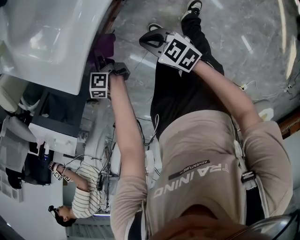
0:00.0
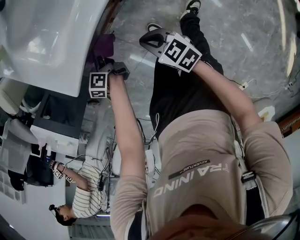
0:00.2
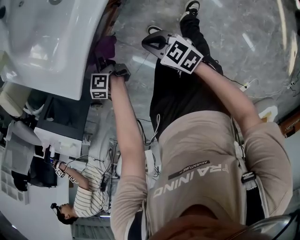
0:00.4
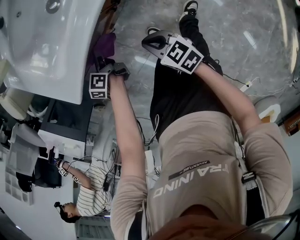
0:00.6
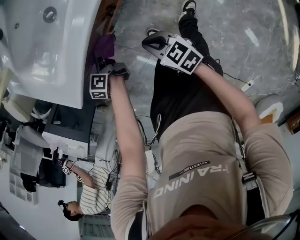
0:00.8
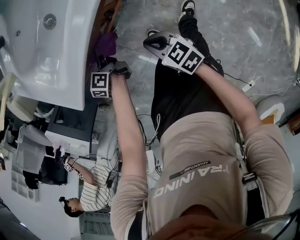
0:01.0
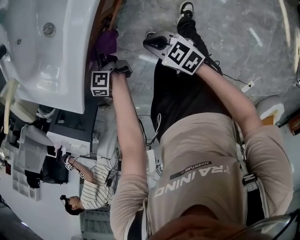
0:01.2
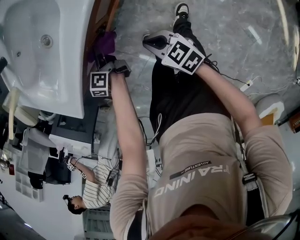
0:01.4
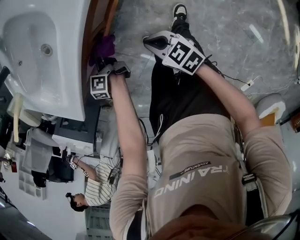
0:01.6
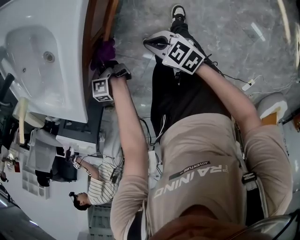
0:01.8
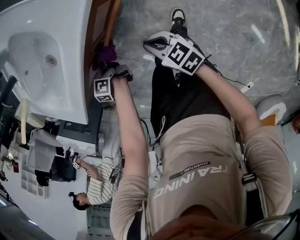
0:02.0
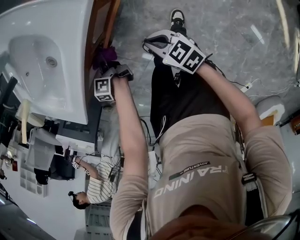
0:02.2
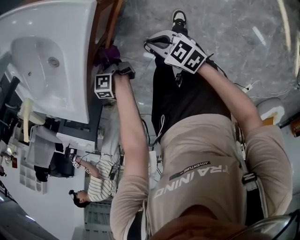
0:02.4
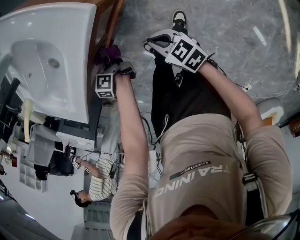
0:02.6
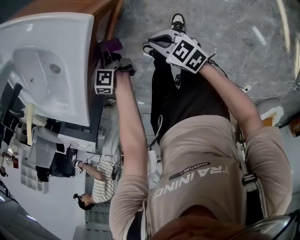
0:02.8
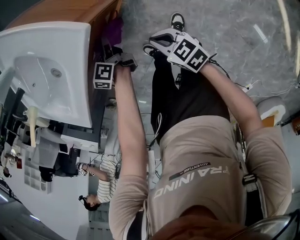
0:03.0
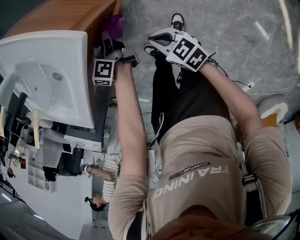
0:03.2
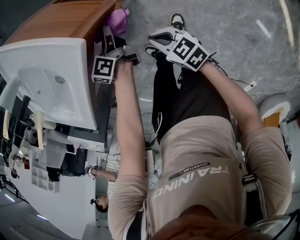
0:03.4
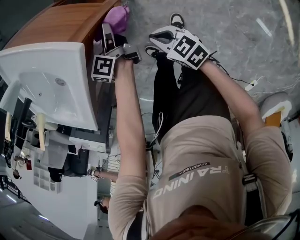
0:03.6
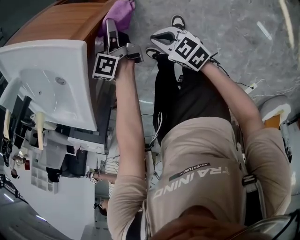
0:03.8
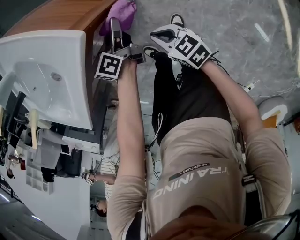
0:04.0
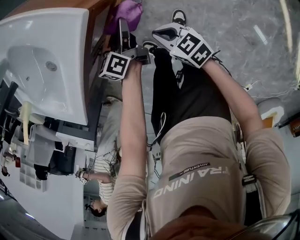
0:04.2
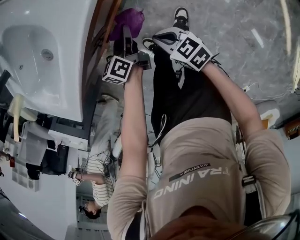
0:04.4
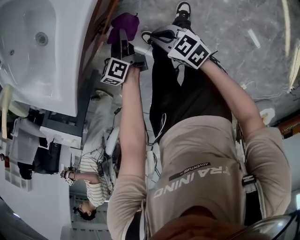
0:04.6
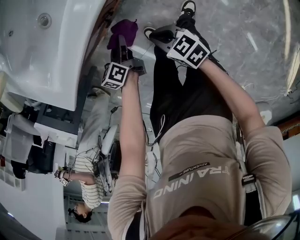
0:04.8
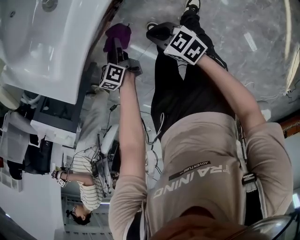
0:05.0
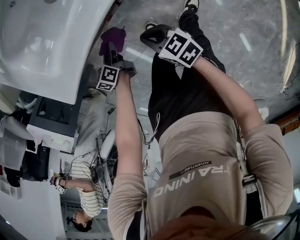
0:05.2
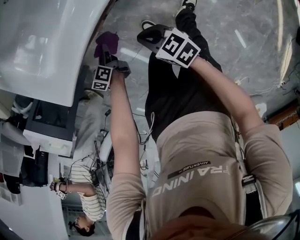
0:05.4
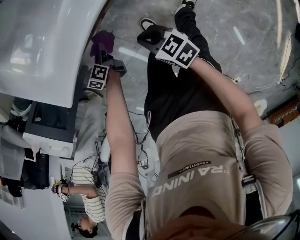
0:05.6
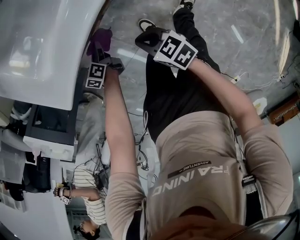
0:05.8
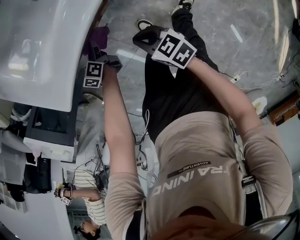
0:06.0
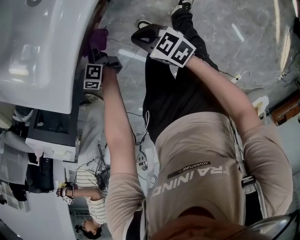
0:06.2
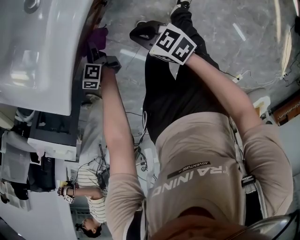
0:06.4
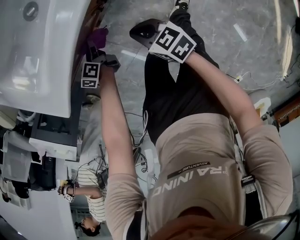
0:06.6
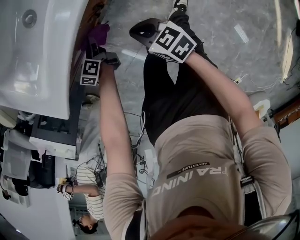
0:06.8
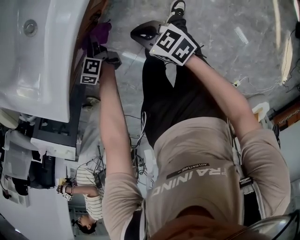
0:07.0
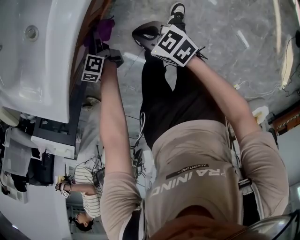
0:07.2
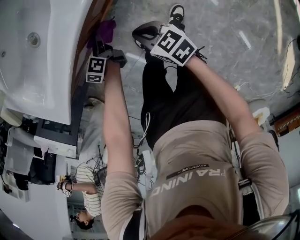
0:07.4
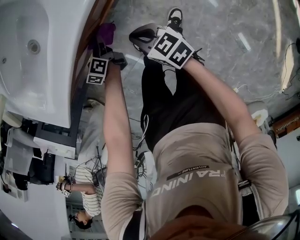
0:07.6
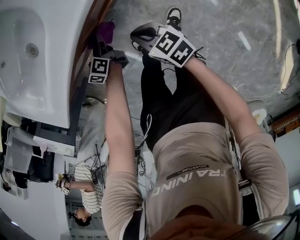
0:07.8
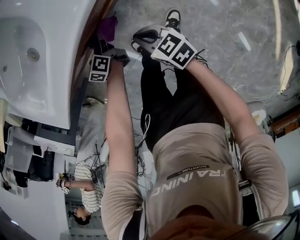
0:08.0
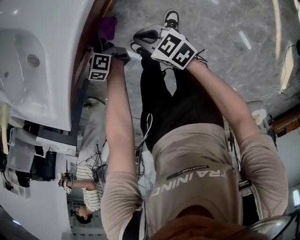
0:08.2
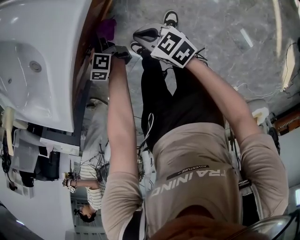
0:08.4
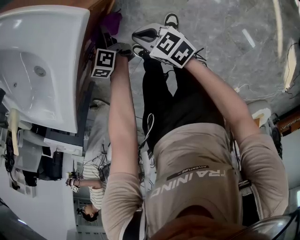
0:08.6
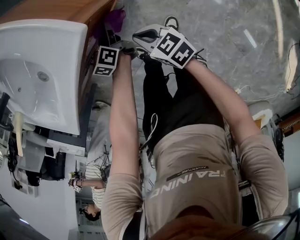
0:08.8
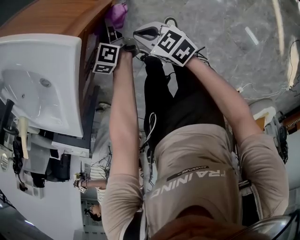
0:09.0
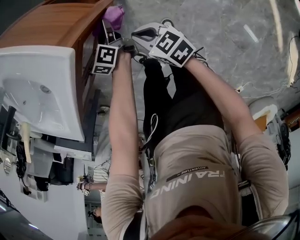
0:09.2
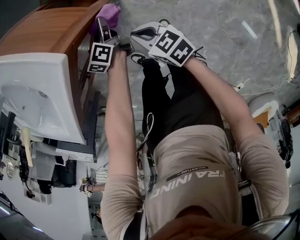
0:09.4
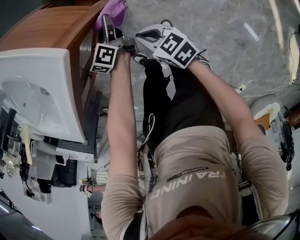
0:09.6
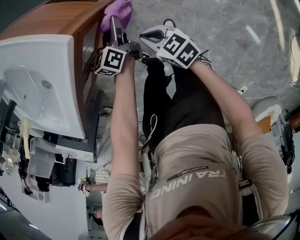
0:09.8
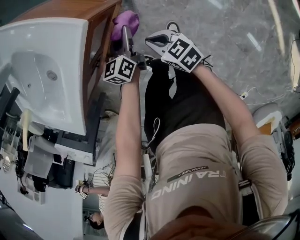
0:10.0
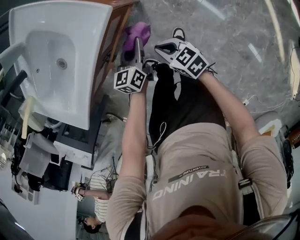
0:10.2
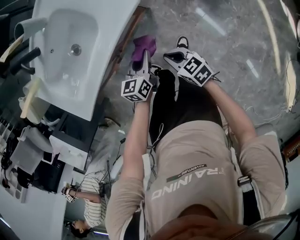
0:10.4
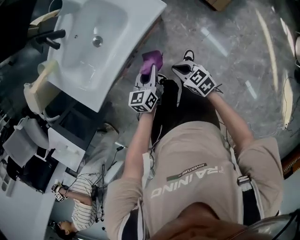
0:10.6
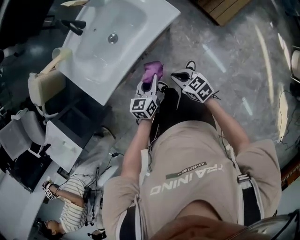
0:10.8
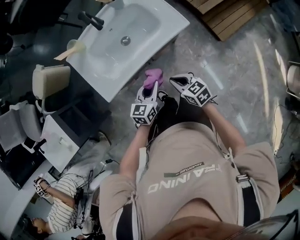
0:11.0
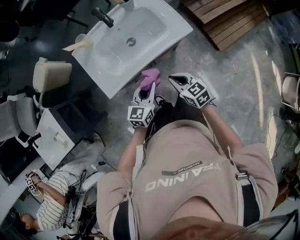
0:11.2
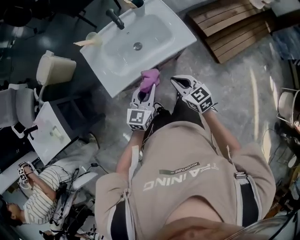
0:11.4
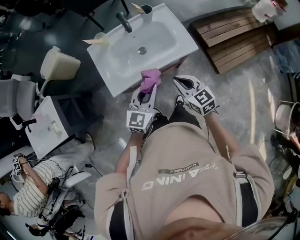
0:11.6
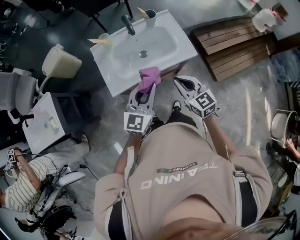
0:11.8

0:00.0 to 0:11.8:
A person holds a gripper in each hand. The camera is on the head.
0:00.0 to 0:01.4: Both grippers travel together to the right, some 20 cm.
0:01.4 to 0:03.0: Both grippers travel together to the right, about 20 cm.
0:03.0 to 0:04.4: The right gripper shifts roughly 10 cm to the left. Meanwhile the left gripper shifts about 10 cm backward, and moves approximately 15 cm to the right and comes back.
0:04.4 to 0:06.0: The grippers both shift to the left by some 30 cm. The left gripper turns by about 20 degrees.
0:06.0 to 0:07.4: The grippers both shift to the right by some 20 cm.
0:07.4 to 0:08.8: The left gripper is displaced to the right by some 25 cm; the right gripper travels to the right by some 15 cm.
0:08.8 to 0:10.4: The right gripper goes approximately 15 cm upward and backward, while the left gripper goes about 20 cm upward and backward, and turns by some 30 degrees.
0:10.4 to 0:11.8: The left gripper goes roughly 40 cm upward and to the left, and turns by roughly 40 degrees. Meanwhile the right gripper goes some 35 cm upward, and turns by about 40 degrees.

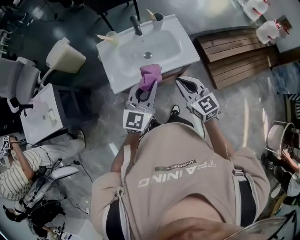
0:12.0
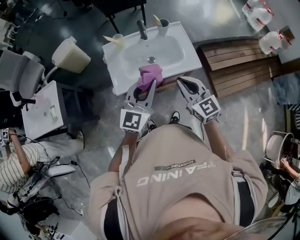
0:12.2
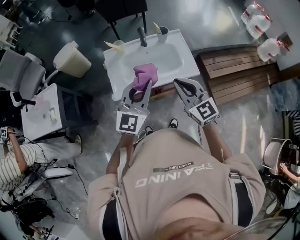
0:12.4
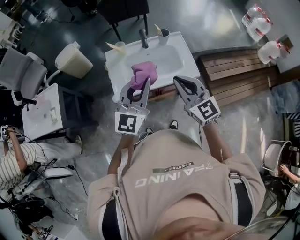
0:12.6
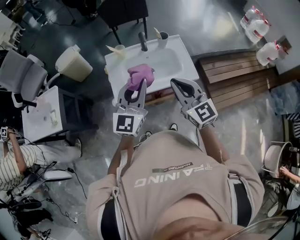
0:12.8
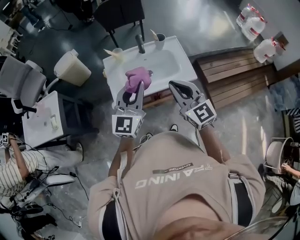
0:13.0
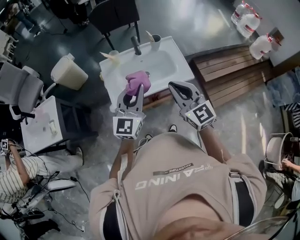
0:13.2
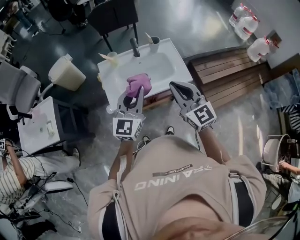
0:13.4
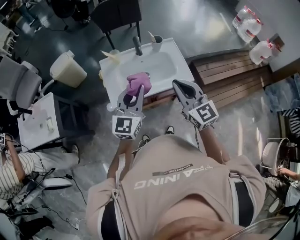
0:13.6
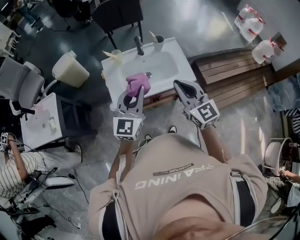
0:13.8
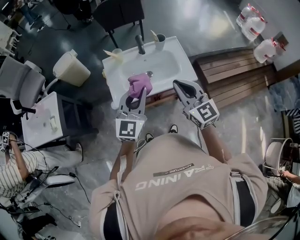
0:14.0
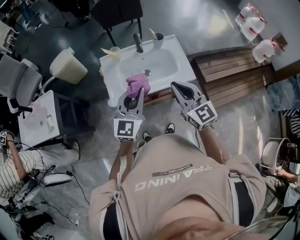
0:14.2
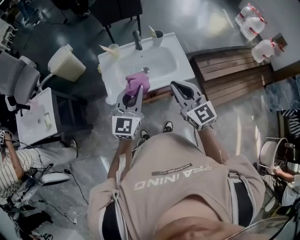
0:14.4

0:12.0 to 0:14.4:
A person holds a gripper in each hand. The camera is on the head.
0:12.0 to 0:13.2: The right gripper moves upward, roughly 10 cm. The left gripper goes approximately 5 cm upward.
0:13.2 to 0:14.4: The grippers make only small movements.

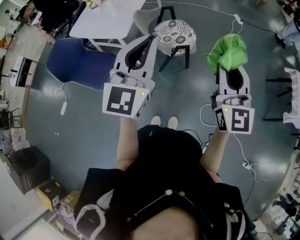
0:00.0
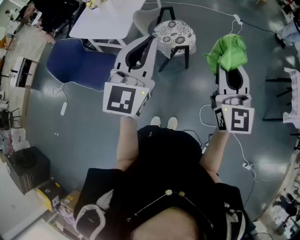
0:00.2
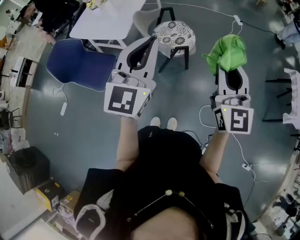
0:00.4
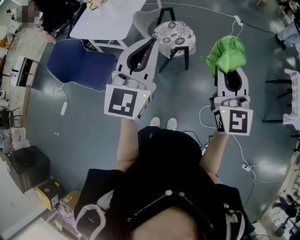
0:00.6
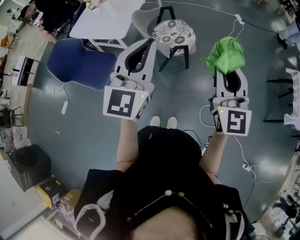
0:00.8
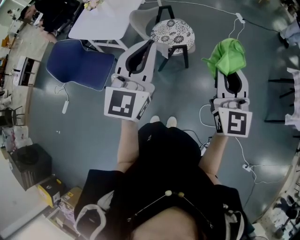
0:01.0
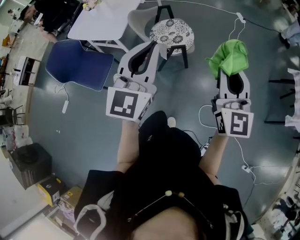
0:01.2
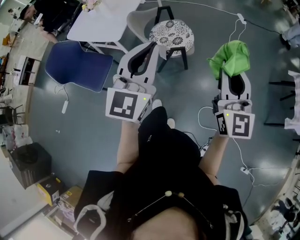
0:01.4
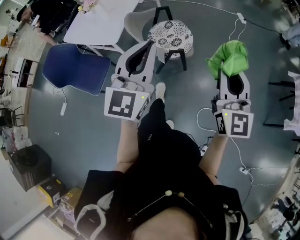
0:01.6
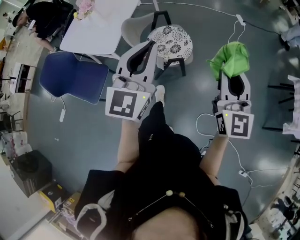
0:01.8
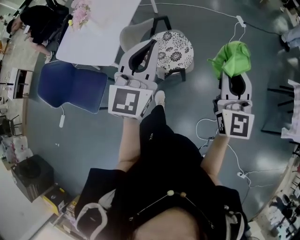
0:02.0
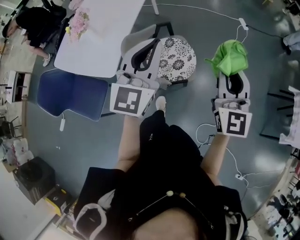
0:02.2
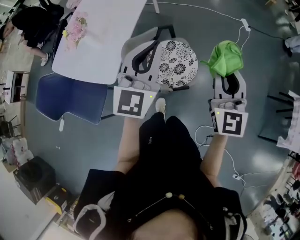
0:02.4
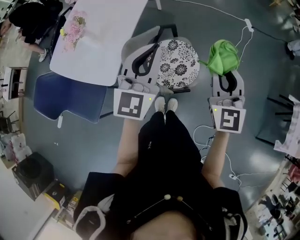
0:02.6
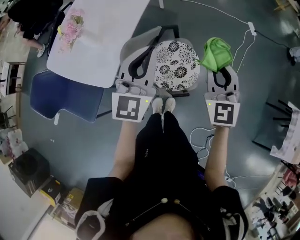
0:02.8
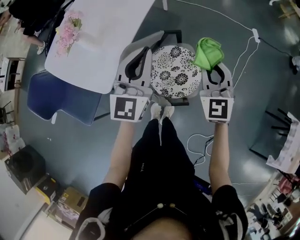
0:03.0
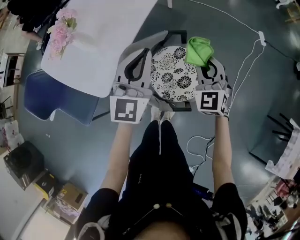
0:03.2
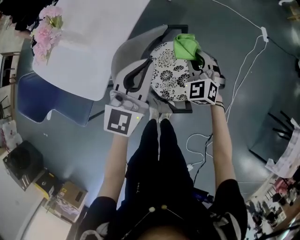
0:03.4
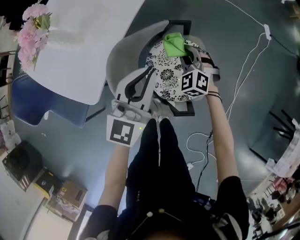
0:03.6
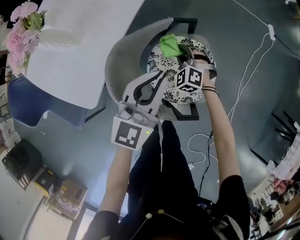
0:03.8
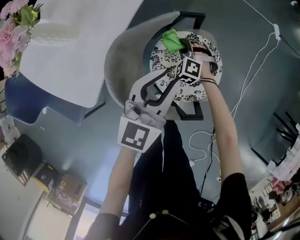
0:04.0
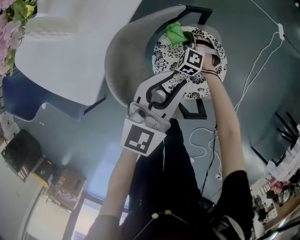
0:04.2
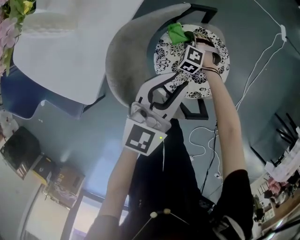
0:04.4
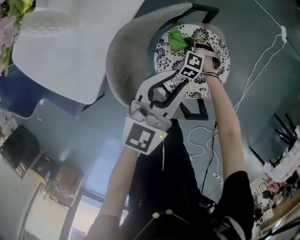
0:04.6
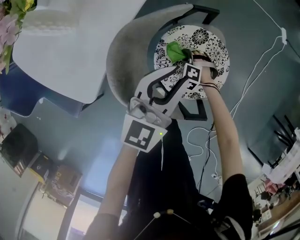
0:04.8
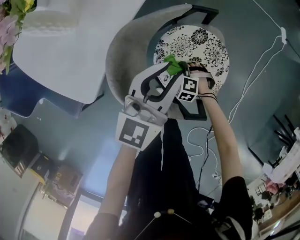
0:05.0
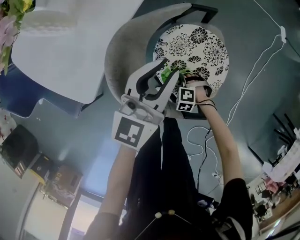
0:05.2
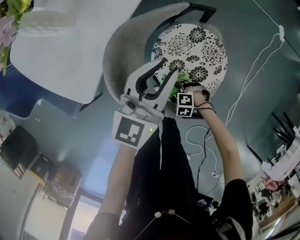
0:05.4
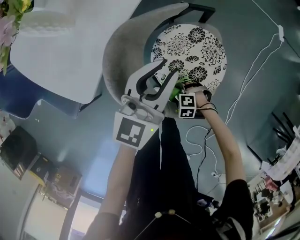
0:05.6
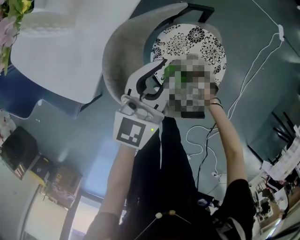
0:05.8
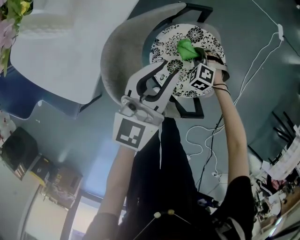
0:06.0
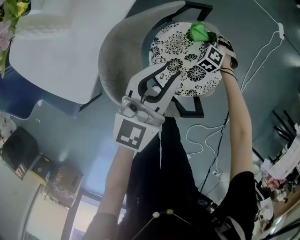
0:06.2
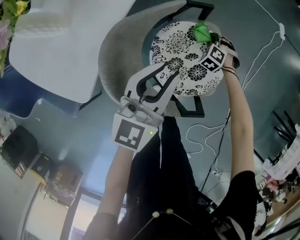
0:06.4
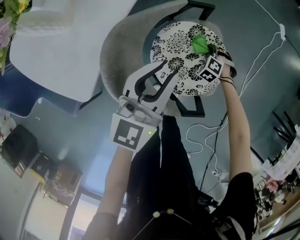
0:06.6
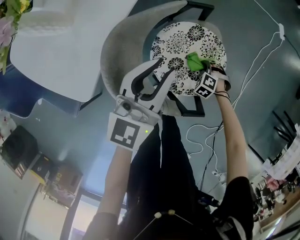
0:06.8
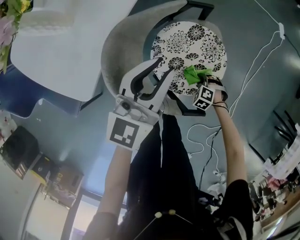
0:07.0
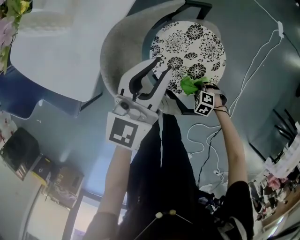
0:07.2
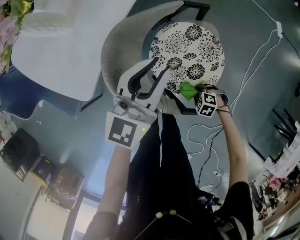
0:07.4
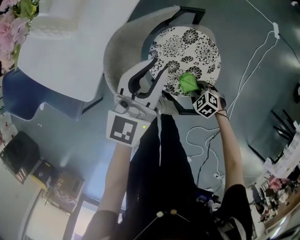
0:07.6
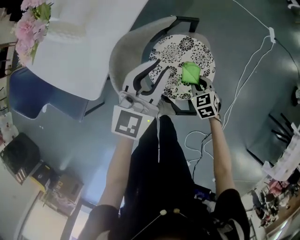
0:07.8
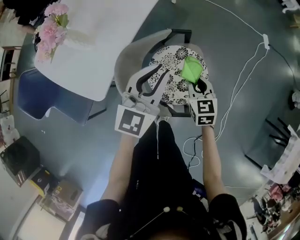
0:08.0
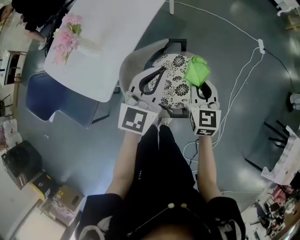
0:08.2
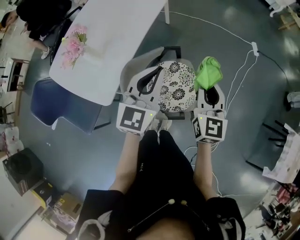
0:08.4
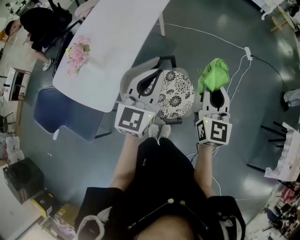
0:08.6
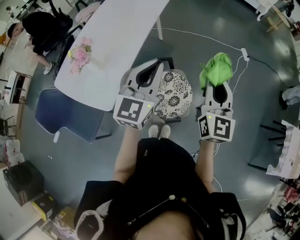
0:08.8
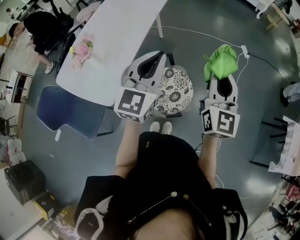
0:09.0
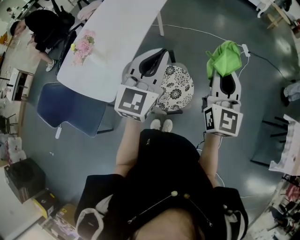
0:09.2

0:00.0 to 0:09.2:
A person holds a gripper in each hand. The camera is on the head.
0:00.0 to 0:01.6: Both grippers move forward and to the right, about 10 cm.
0:01.6 to 0:03.0: Both grippers are carried forward, approximately 50 cm. The right gripper changes its angle by about 30 degrees.
0:03.0 to 0:04.6: The left gripper travels downward by some 25 cm; the right gripper moves downward, approximately 50 cm, and angles its fingers downward, by some 50 degrees.
0:06.2 to 0:07.6: The right gripper goes downward and returns, roughly 5 cm each way, and swivels about 30 degrees.
0:07.6 to 0:09.2: The left gripper moves upward, roughly 30 cm, while the right gripper travels upward by roughly 70 cm, and points its fingers some 80 degrees further upward.
